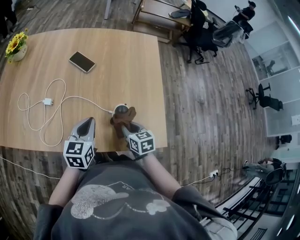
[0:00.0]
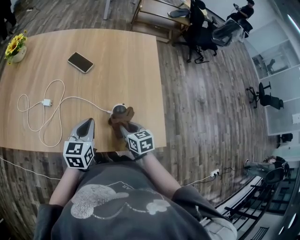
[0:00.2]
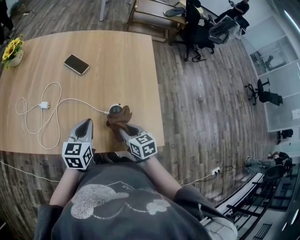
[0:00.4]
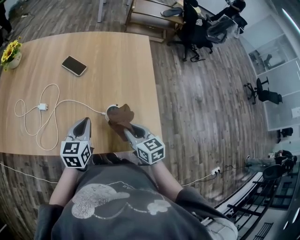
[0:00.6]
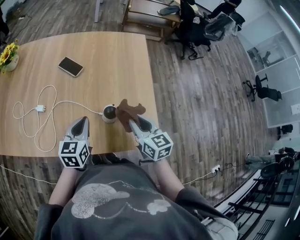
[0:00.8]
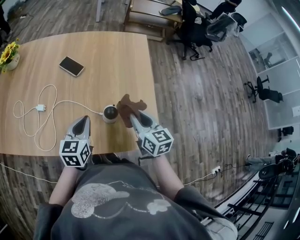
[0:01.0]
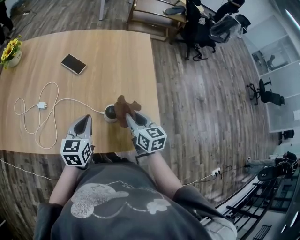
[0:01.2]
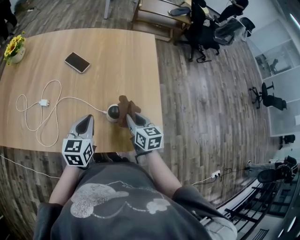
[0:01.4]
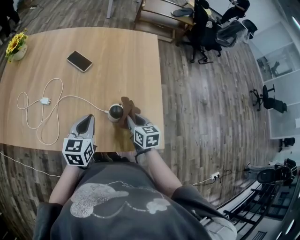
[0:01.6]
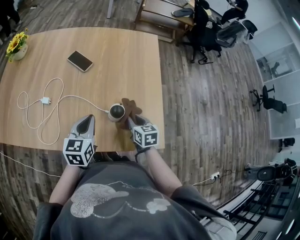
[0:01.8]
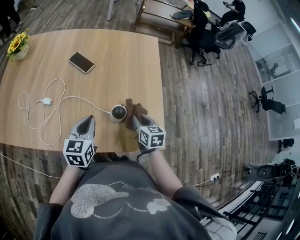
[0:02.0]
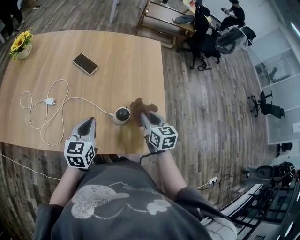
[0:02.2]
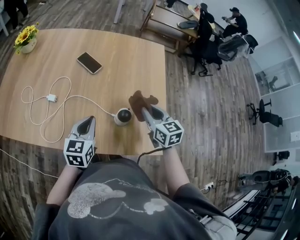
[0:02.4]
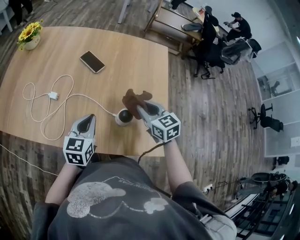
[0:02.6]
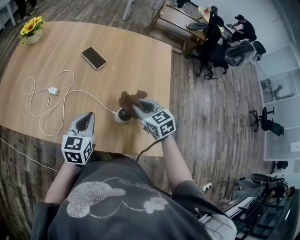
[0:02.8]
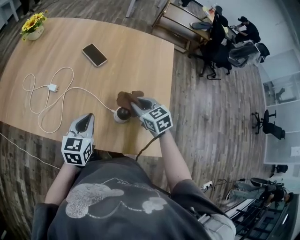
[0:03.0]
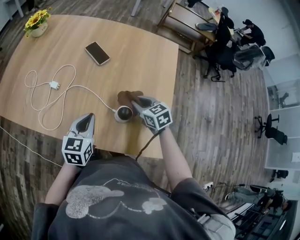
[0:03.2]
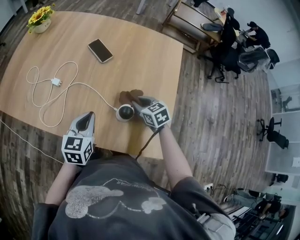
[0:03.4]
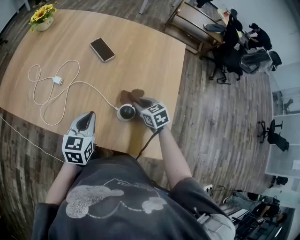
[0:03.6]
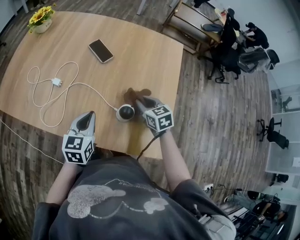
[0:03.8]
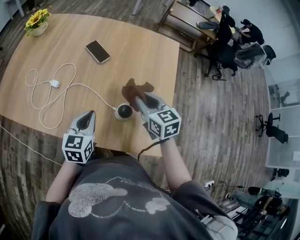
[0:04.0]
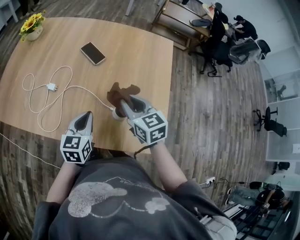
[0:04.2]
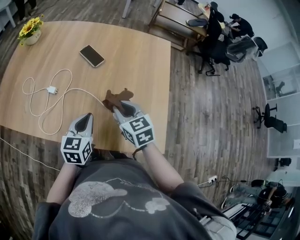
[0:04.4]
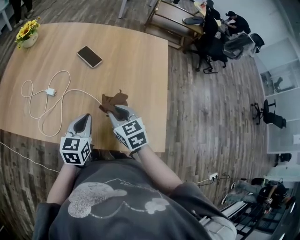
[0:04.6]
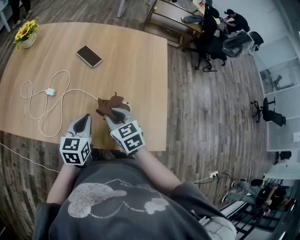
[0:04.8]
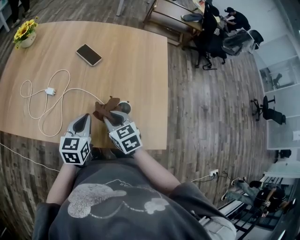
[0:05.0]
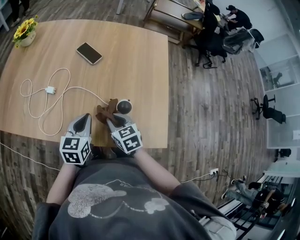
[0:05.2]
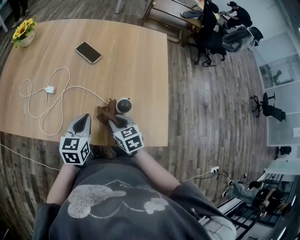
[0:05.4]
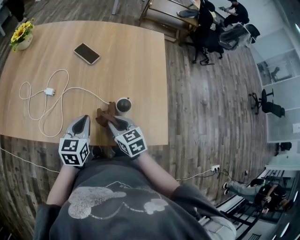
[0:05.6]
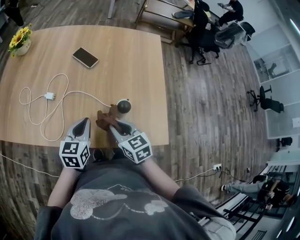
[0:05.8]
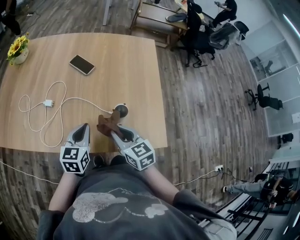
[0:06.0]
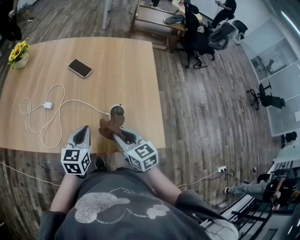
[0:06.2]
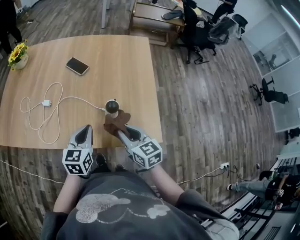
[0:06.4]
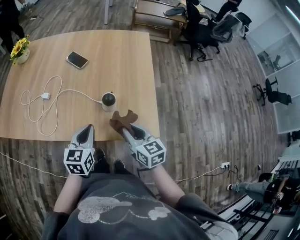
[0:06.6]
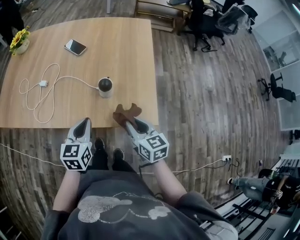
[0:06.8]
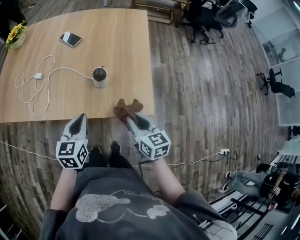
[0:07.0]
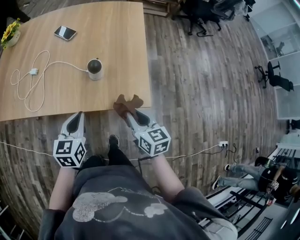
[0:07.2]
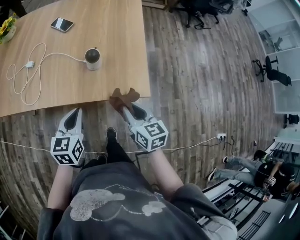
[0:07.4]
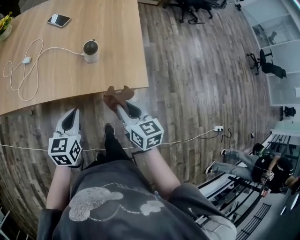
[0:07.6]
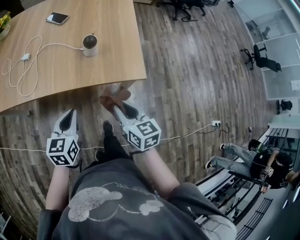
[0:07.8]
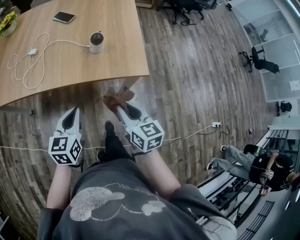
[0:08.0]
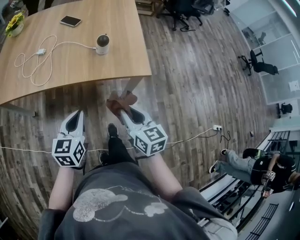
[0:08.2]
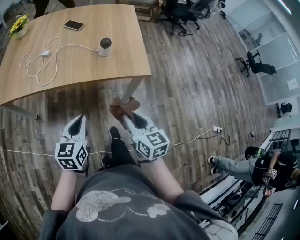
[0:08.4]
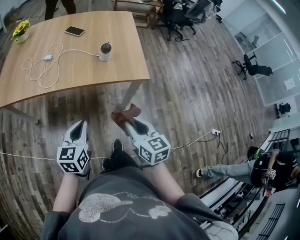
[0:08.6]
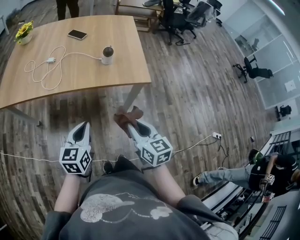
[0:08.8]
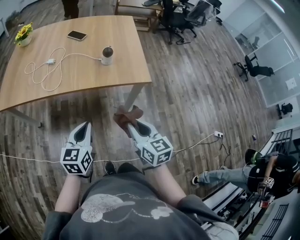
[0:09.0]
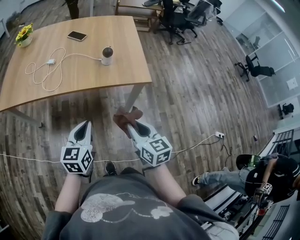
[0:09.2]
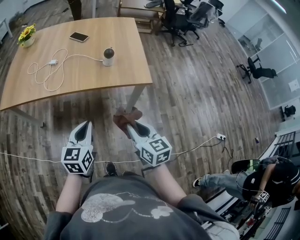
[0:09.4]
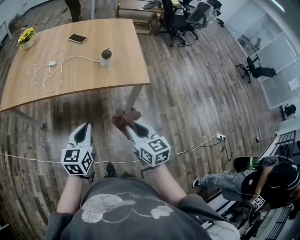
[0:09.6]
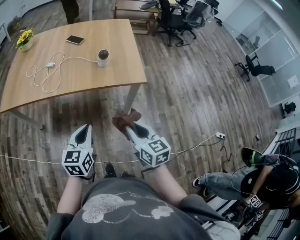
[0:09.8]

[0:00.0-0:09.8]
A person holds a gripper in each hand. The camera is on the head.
0:00.0 to 0:01.4: The right gripper shifts some 5 cm to the right.
0:01.4 to 0:02.8: The right gripper shifts roughly 5 cm forward, and changes its angle by approximately 30 degrees.
0:02.8 to 0:04.2: The right gripper goes downward and returns, approximately 10 cm each way.
0:04.2 to 0:05.6: The right gripper is displaced downward, backward and to the left by some 15 cm.
0:05.6 to 0:07.0: The right gripper is displaced to the right and backward by roughly 20 cm, and rotates some 20 degrees. Meanwhile the left gripper travels backward and to the right by some 15 cm.
0:07.0 to 0:08.4: Both grippers move backward, some 20 cm.
0:08.4 to 0:09.8: The left gripper ends up roughly 5 cm from where it was, while the right gripper is displaced backward by about 5 cm.

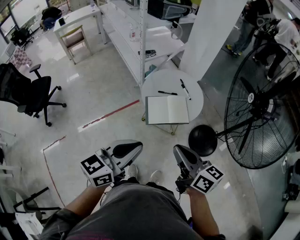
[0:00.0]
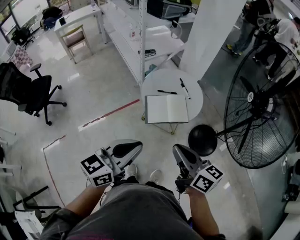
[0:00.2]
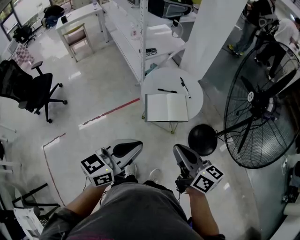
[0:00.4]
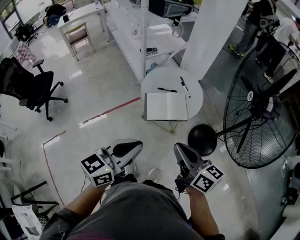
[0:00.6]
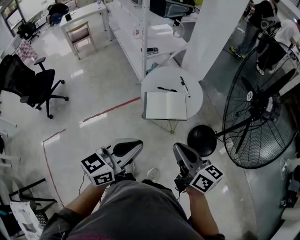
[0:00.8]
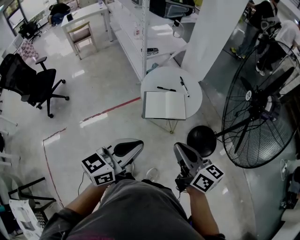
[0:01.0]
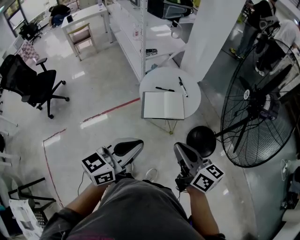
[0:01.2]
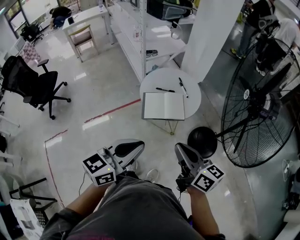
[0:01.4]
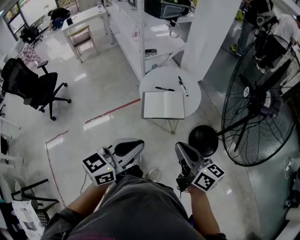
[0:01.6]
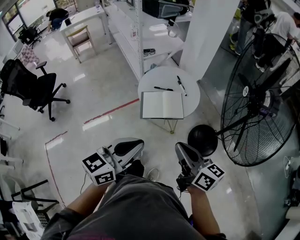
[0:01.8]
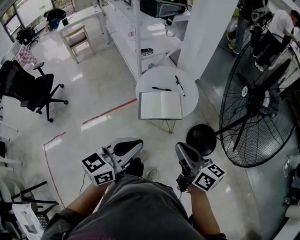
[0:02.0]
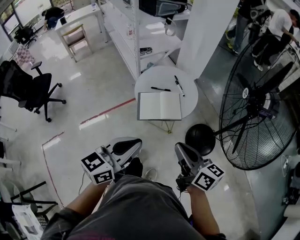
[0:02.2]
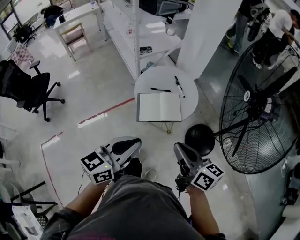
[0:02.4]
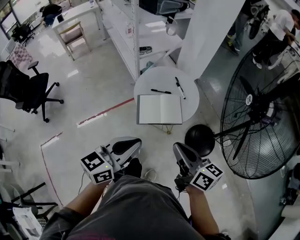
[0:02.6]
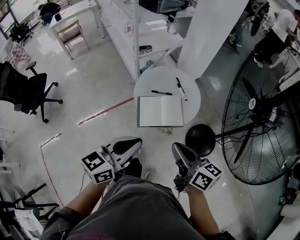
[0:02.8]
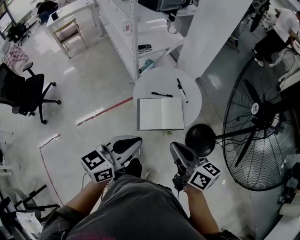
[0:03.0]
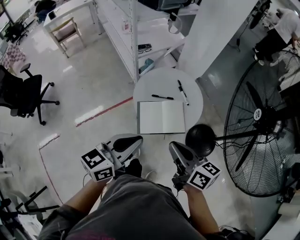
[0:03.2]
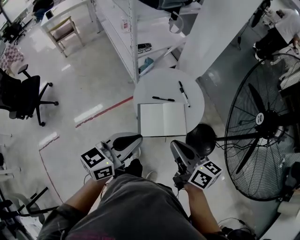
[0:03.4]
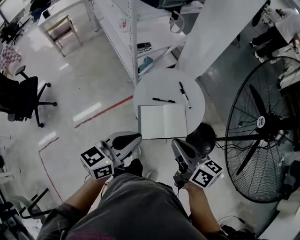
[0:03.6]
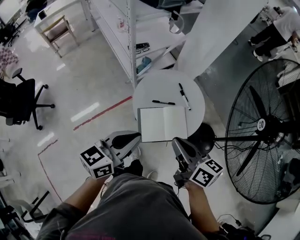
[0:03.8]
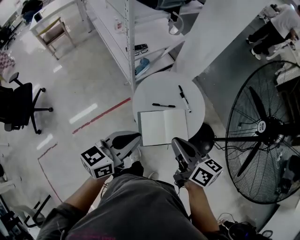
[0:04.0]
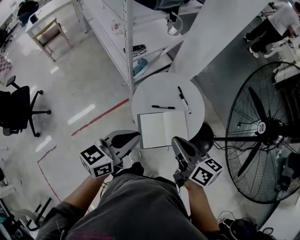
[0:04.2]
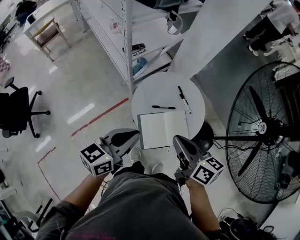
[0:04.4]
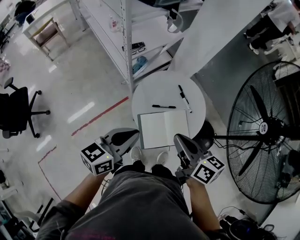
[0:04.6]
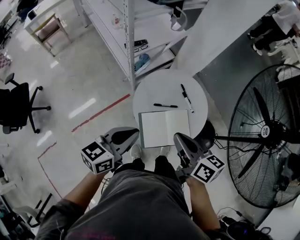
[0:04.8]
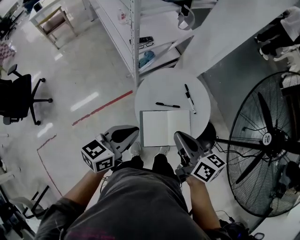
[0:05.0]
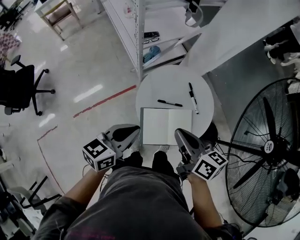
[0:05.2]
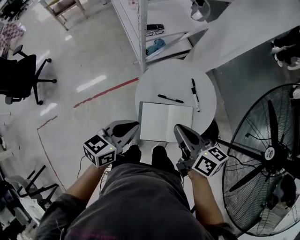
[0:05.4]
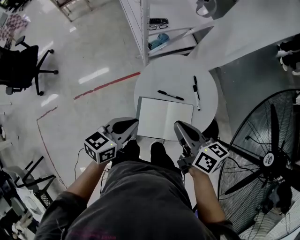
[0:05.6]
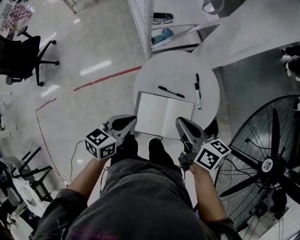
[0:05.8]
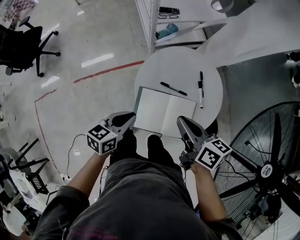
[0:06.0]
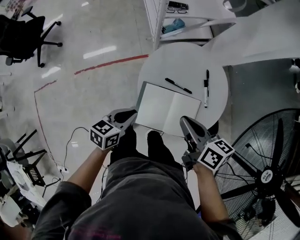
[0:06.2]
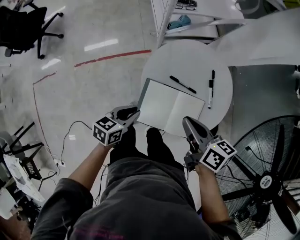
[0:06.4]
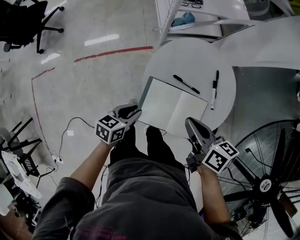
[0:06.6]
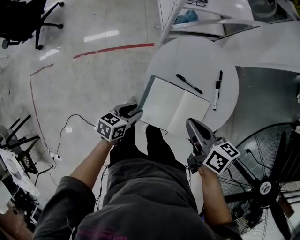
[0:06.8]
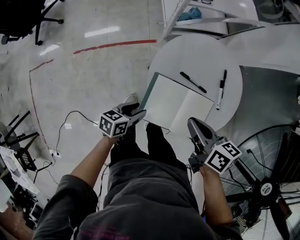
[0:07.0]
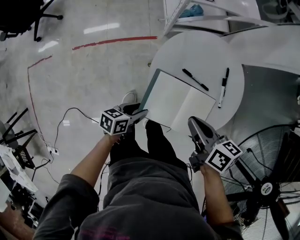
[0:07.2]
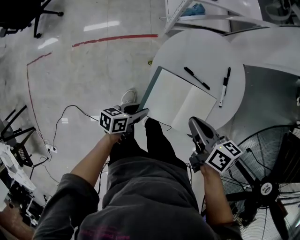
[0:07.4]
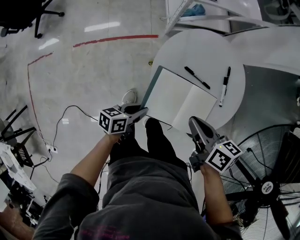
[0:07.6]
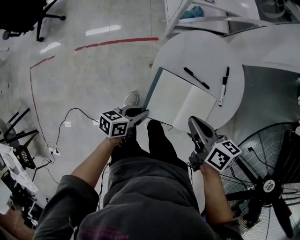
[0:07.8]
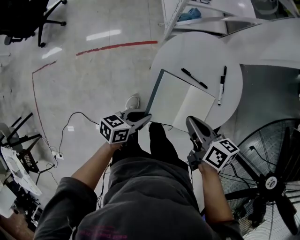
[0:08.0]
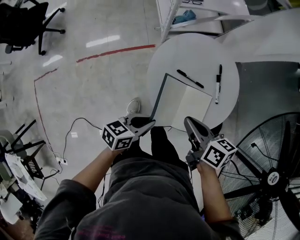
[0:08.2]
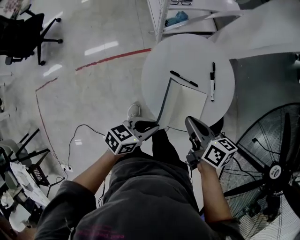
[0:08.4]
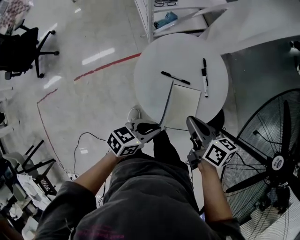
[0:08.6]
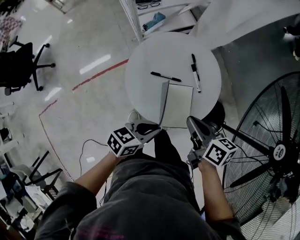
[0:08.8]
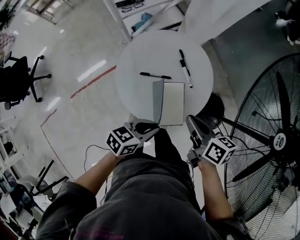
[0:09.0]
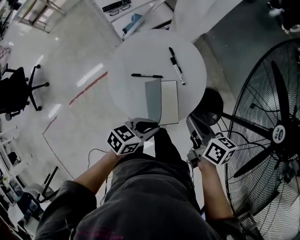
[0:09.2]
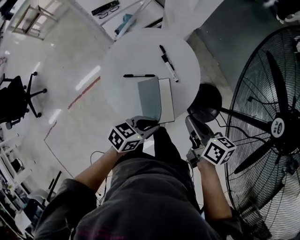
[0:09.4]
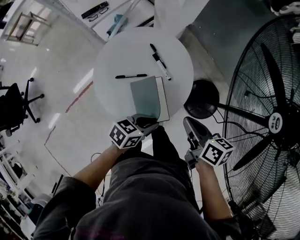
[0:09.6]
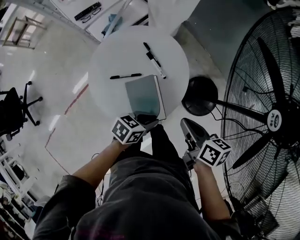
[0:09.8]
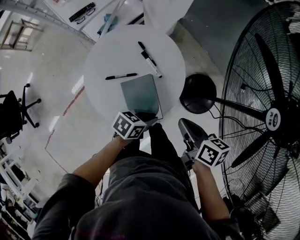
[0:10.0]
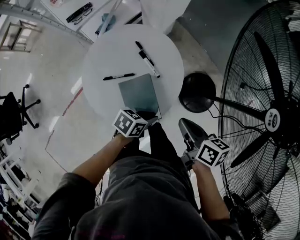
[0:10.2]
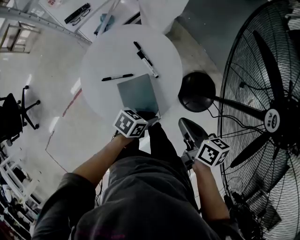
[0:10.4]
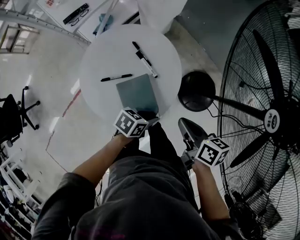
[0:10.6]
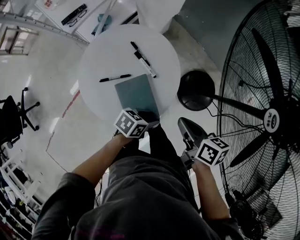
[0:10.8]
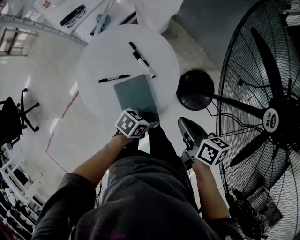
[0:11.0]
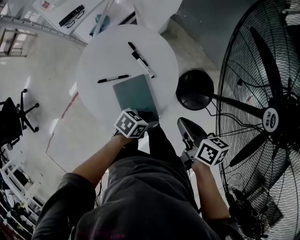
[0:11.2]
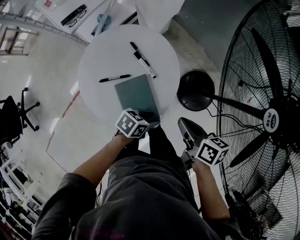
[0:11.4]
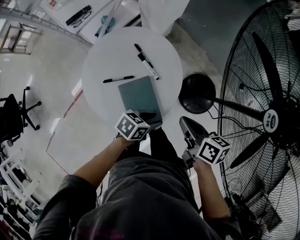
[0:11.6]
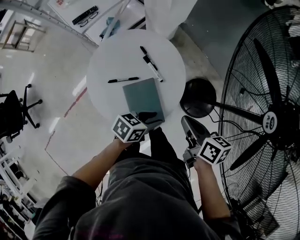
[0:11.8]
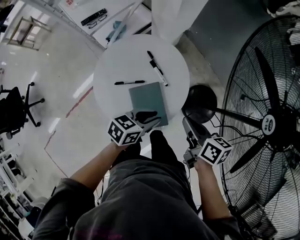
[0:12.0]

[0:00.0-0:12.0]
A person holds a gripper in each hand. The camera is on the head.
0:00.0 to 0:01.6: Both grippers move to the right, roughly 10 cm.
0:01.6 to 0:03.0: Both grippers move forward, approximately 15 cm.
0:03.0 to 0:04.4: Both grippers travel together forward and to the left, some 20 cm.
0:04.4 to 0:06.0: The right gripper travels downward and forward by about 15 cm, and changes its angle by approximately 20 degrees; the left gripper travels downward by some 20 cm, and changes its angle by approximately 30 degrees.
0:06.0 to 0:07.6: The left gripper moves downward, roughly 15 cm, turns by roughly 20 degrees, and opens, then closes once more; the right gripper heads downward, covering approximately 10 cm.
0:07.6 to 0:09.0: The right gripper changes place by some 15 cm, and rotates some 30 degrees. Meanwhile the left gripper shifts by about 20 cm, and rotates roughly 40 degrees.
0:09.0 to 0:10.4: The right gripper shifts by about 15 cm; the left gripper ends up some 15 cm from where it was, and rotates about 20 degrees.
0:10.4 to 0:12.0: The left gripper heads upward, covering roughly 10 cm.

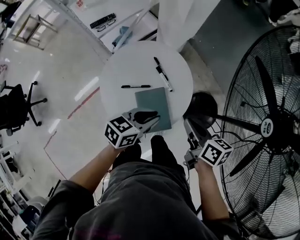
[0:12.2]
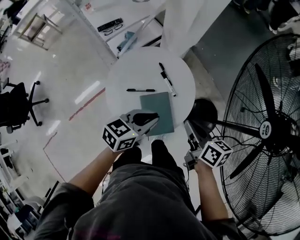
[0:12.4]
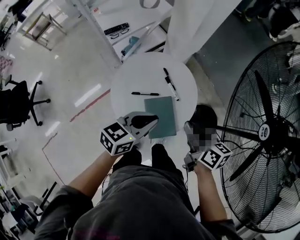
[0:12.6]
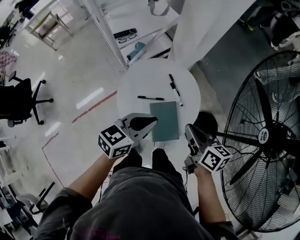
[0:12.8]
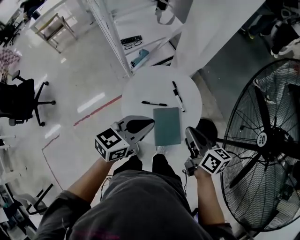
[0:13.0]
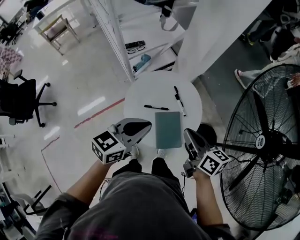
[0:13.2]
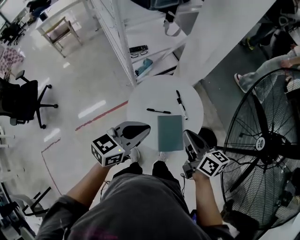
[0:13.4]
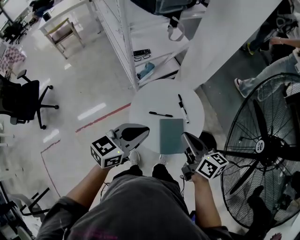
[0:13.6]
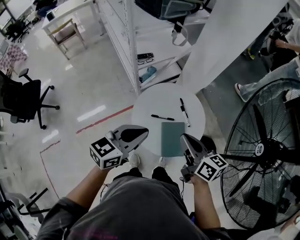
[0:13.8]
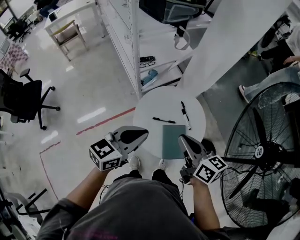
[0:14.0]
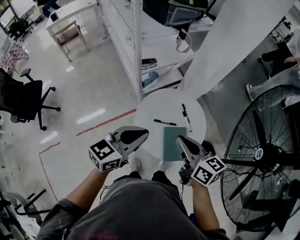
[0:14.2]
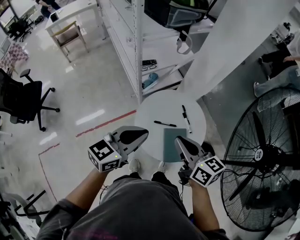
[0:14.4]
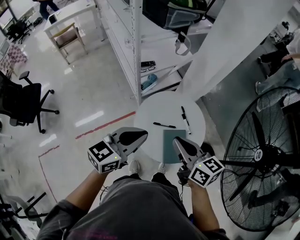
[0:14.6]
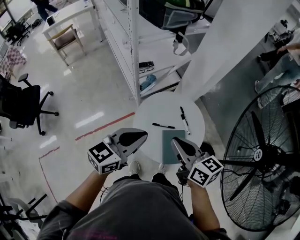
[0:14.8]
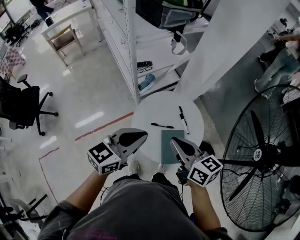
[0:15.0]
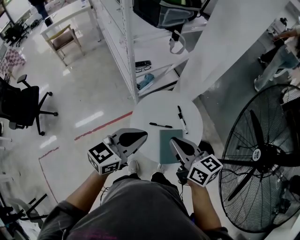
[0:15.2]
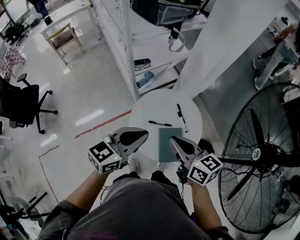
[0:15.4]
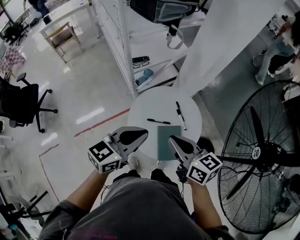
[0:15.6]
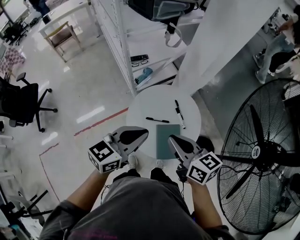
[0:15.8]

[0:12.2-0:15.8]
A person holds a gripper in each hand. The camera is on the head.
0:12.2 to 0:14.0: The grippers both shift to the left and upward by some 25 cm. The right gripper changes its angle by approximately 30 degrees. Meanwhile the left gripper changes its angle by about 30 degrees.
0:14.0 to 0:15.8: The grippers move only a little.
